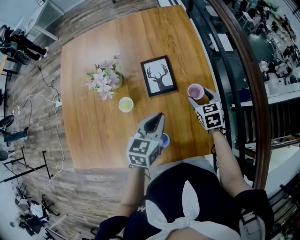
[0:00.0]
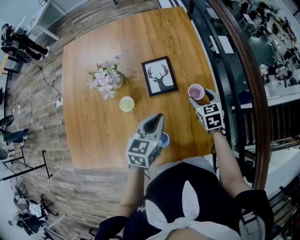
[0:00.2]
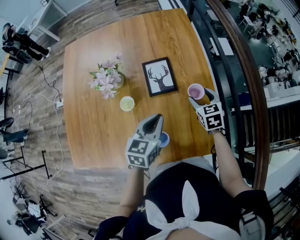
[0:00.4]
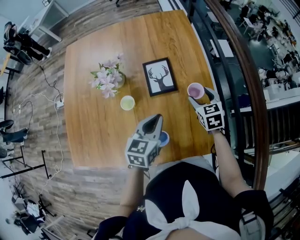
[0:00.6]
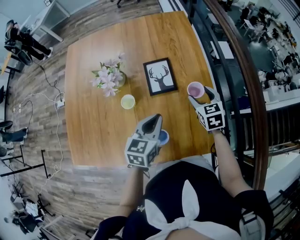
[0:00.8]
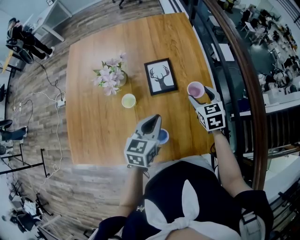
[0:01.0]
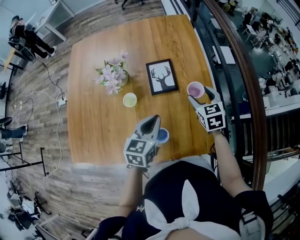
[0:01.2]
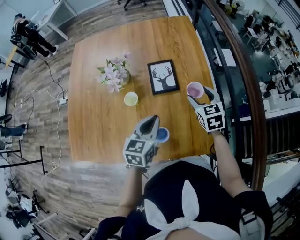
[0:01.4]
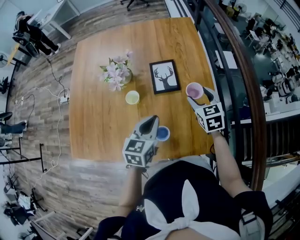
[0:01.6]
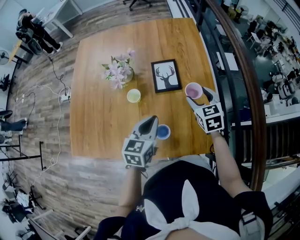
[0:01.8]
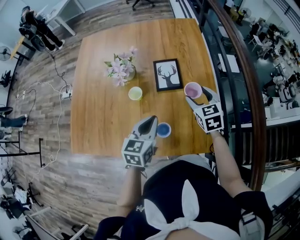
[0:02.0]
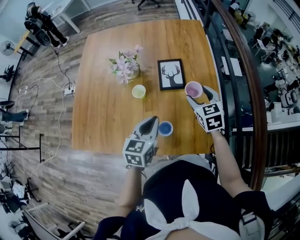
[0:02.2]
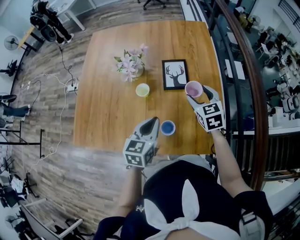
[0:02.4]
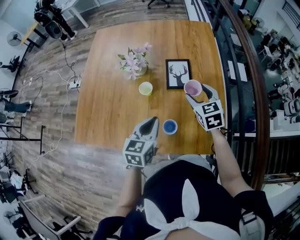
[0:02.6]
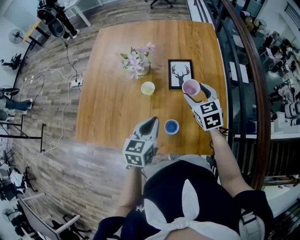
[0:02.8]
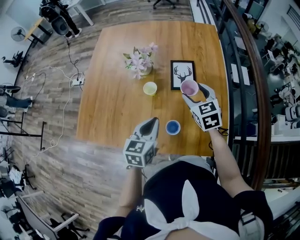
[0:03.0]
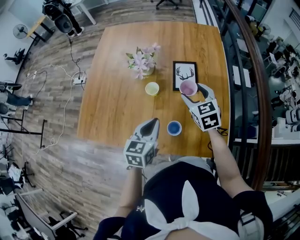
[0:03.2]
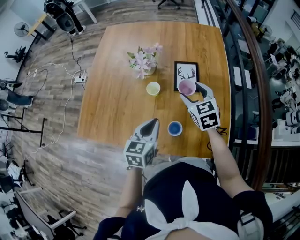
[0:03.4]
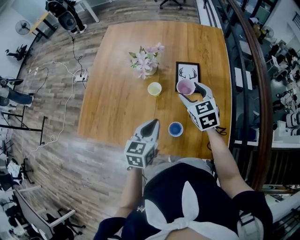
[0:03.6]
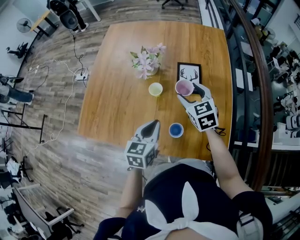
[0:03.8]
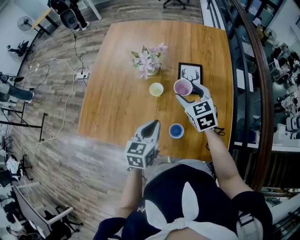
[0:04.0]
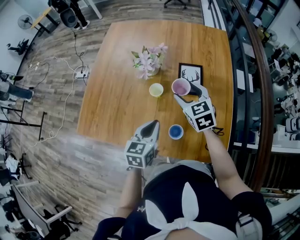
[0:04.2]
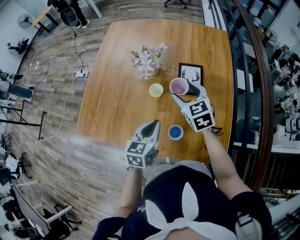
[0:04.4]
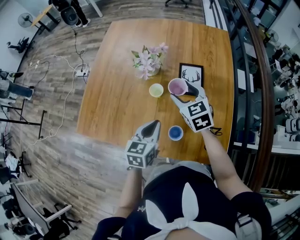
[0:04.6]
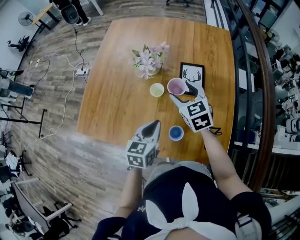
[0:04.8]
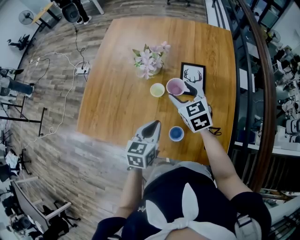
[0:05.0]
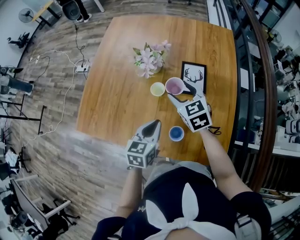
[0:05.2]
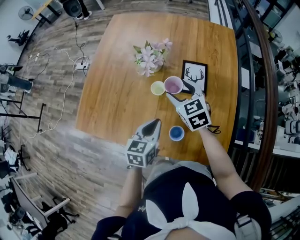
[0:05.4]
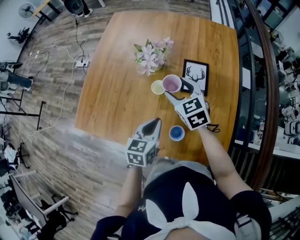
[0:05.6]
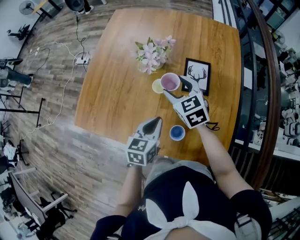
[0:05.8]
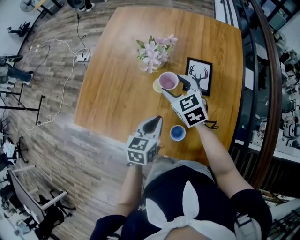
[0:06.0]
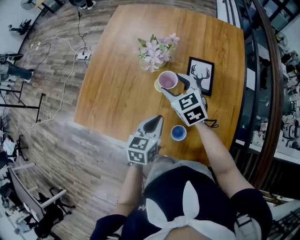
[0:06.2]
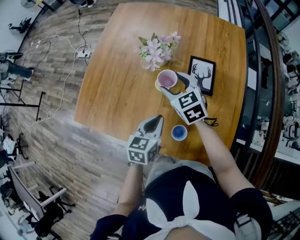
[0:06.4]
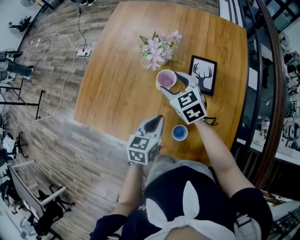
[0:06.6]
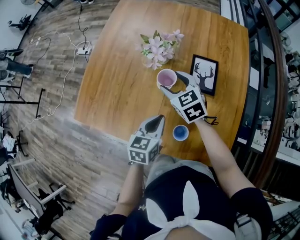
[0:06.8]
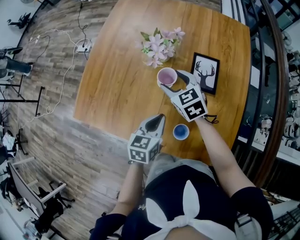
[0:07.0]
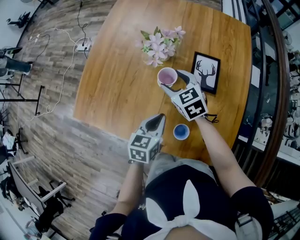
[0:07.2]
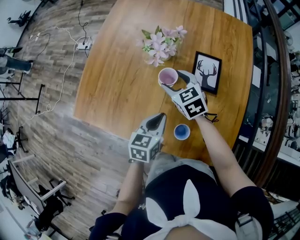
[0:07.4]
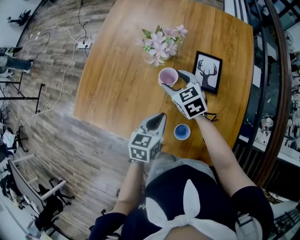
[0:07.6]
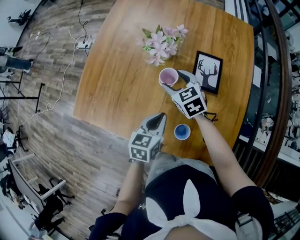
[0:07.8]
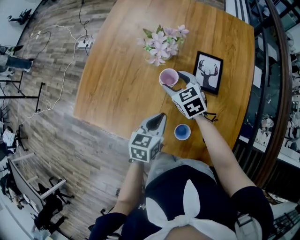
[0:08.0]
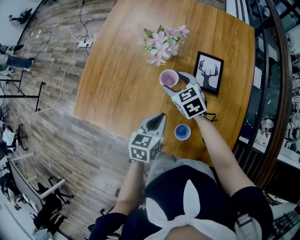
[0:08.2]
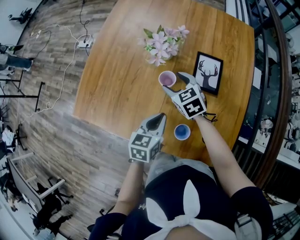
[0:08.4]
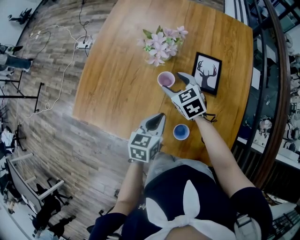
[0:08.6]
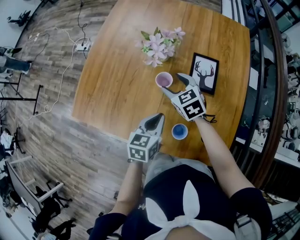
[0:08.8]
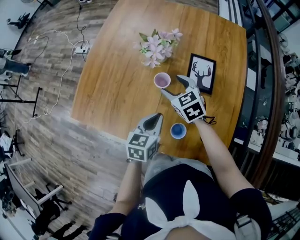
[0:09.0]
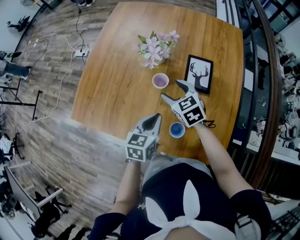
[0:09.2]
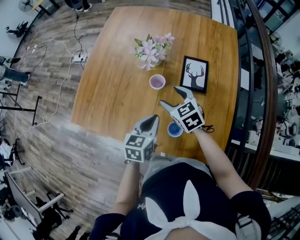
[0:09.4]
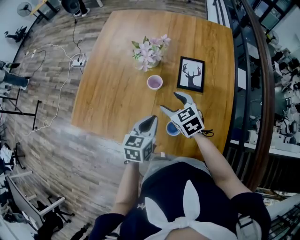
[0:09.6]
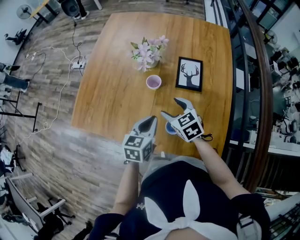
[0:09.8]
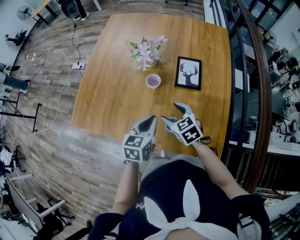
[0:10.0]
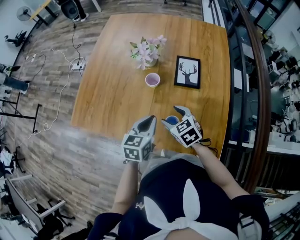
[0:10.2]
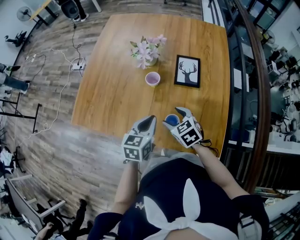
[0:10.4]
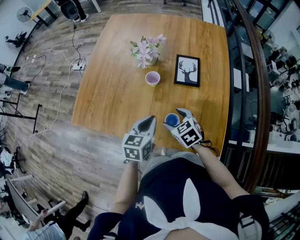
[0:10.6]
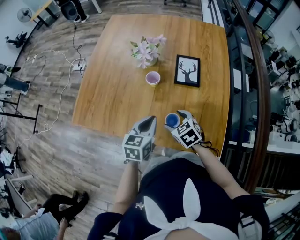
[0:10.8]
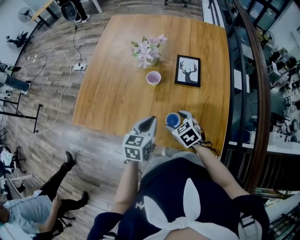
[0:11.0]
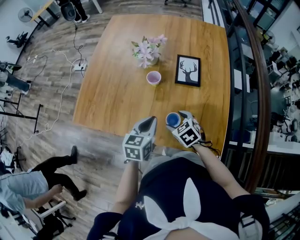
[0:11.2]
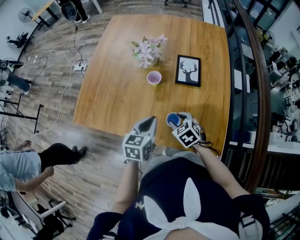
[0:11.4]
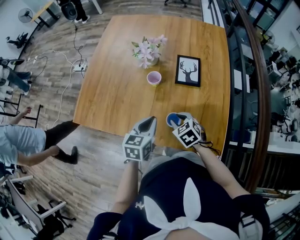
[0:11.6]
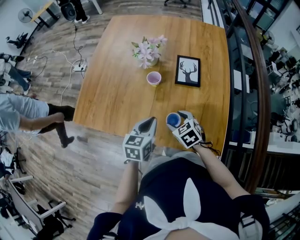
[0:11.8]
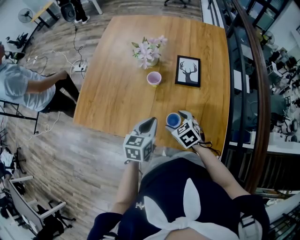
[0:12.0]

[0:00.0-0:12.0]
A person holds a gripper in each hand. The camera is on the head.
0.0 to 1.6 s: The left gripper travels backward by about 5 cm. The right gripper is displaced upward by roughly 10 cm.
1.6 to 3.0 s: The left gripper heads to the left and backward, covering roughly 10 cm; the right gripper is displaced to the left by approximately 10 cm.
3.0 to 4.4 s: The right gripper is displaced to the left by roughly 10 cm.
4.4 to 6.0 s: The right gripper heads to the left, covering some 5 cm.
6.0 to 7.6 s: The right gripper shifts some 10 cm downward.
7.6 to 9.0 s: The grippers make only small movements.
9.0 to 10.4 s: The left gripper moves backward, some 5 cm; the right gripper heads backward, covering some 20 cm.
10.4 to 12.0 s: The right gripper closes, then opens again.

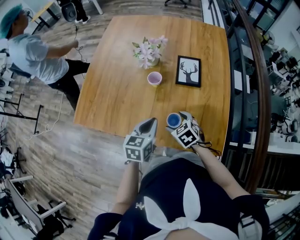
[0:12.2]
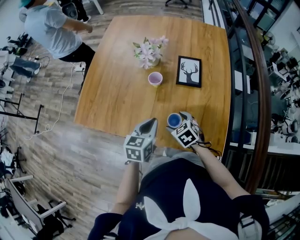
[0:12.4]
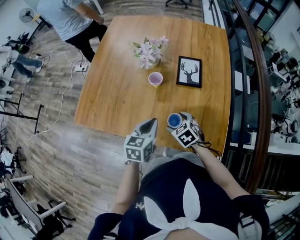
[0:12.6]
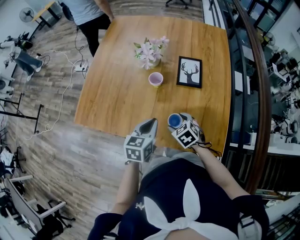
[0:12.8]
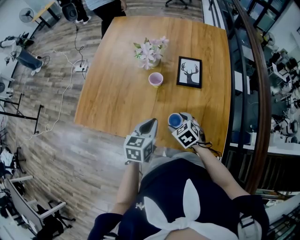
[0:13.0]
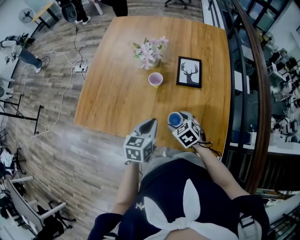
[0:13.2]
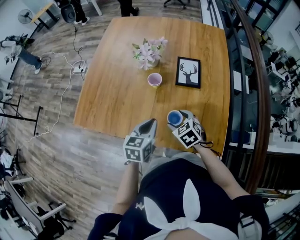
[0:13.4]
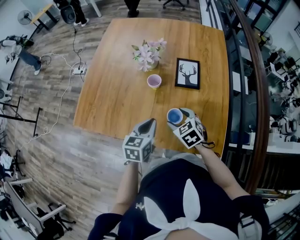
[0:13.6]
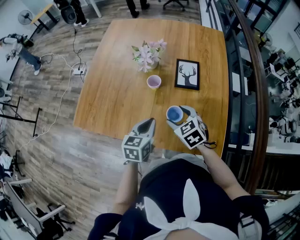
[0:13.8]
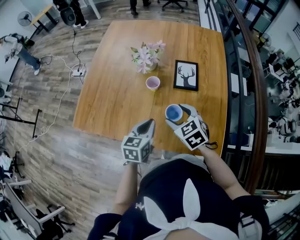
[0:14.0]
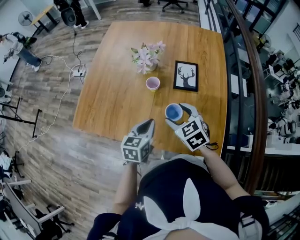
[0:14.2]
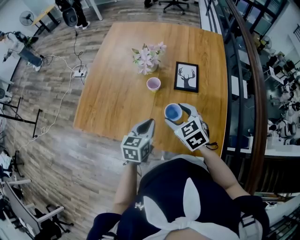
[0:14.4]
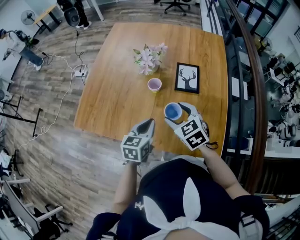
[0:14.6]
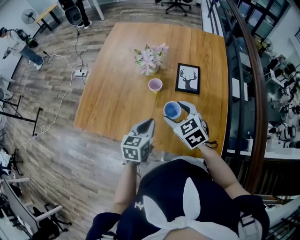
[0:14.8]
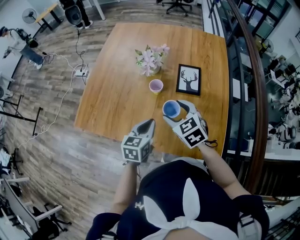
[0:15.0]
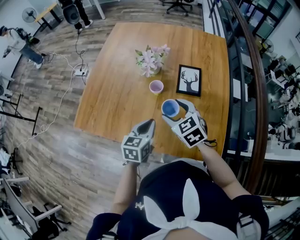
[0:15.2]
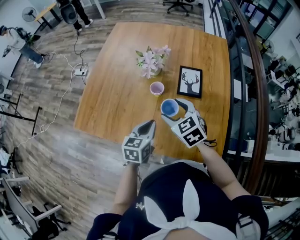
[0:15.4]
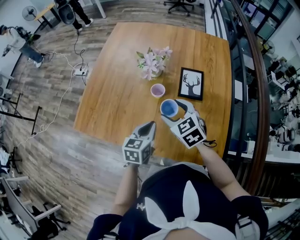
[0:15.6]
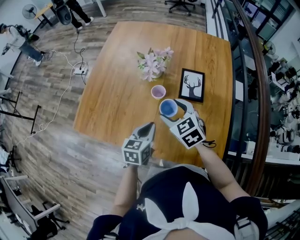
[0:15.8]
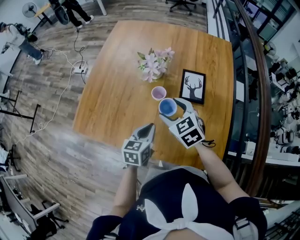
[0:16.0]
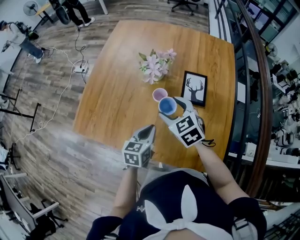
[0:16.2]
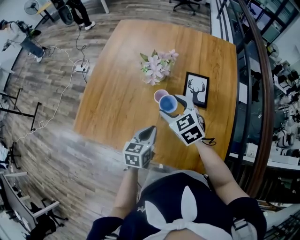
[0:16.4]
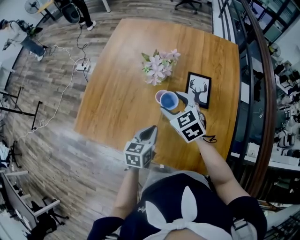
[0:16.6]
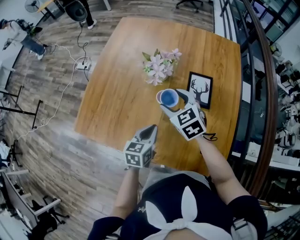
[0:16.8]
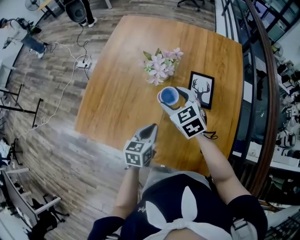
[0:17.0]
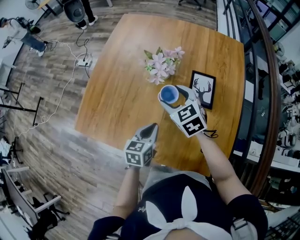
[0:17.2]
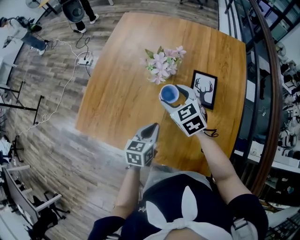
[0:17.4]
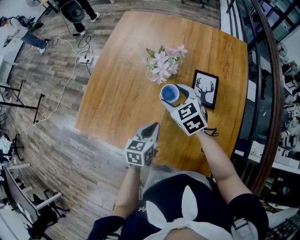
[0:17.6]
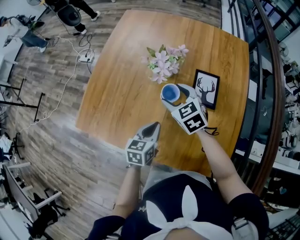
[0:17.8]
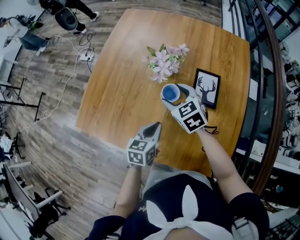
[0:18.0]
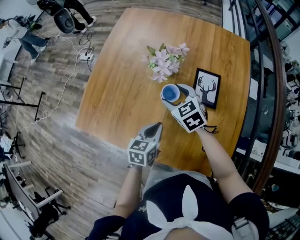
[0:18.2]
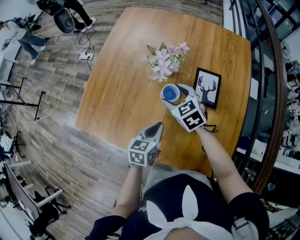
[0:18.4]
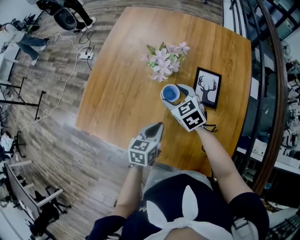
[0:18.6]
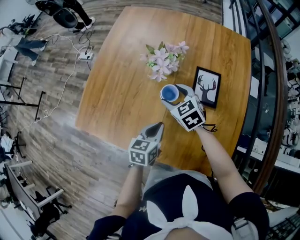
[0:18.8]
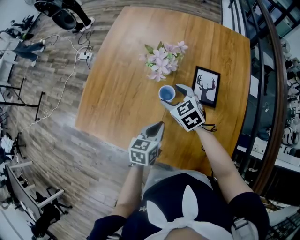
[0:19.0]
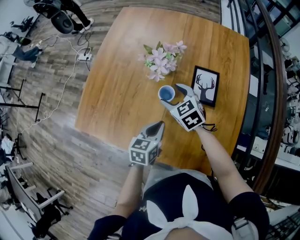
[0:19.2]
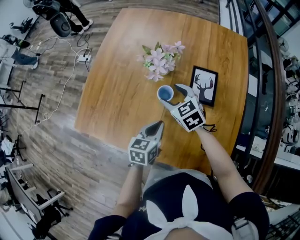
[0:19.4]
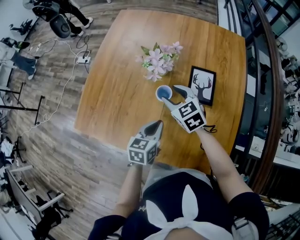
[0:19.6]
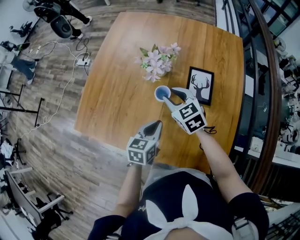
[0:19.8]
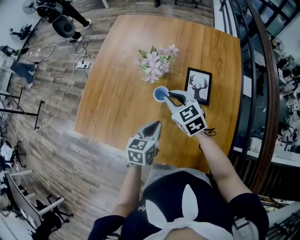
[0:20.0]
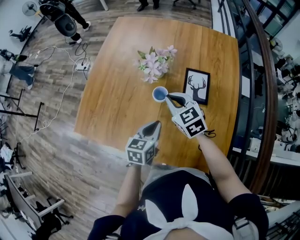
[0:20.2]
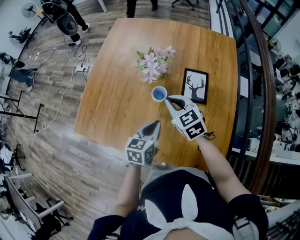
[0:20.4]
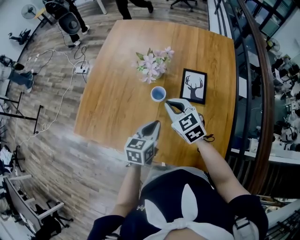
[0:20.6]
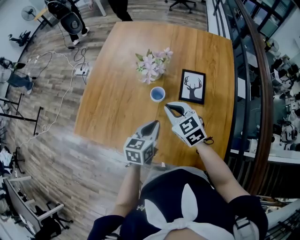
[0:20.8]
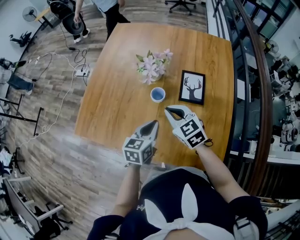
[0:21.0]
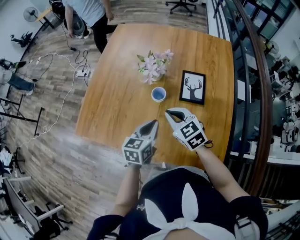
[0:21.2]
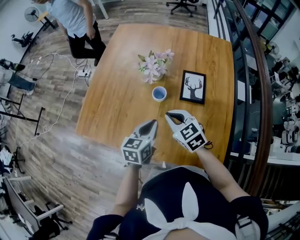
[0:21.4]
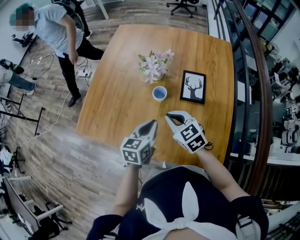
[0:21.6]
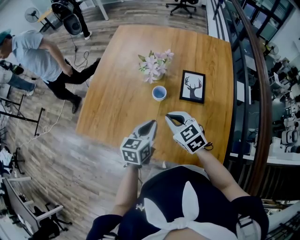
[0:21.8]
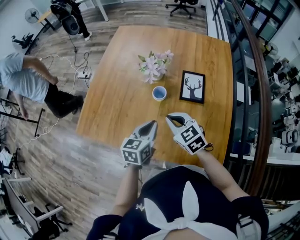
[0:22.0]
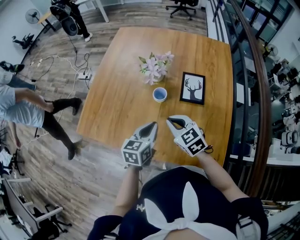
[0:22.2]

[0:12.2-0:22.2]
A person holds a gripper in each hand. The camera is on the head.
12.2 to 13.6 s: The right gripper changes place by roughly 5 cm.
13.6 to 15.0 s: The right gripper moves upward, some 10 cm.
15.0 to 16.4 s: The left gripper is displaced forward by approximately 5 cm. The right gripper heads forward, covering approximately 10 cm.
16.4 to 18.0 s: The right gripper is displaced forward by about 5 cm.
18.0 to 19.4 s: The grippers stay close to where they were, moving slightly.
19.4 to 20.8 s: The left gripper shifts by some 5 cm. Meanwhile the right gripper is displaced backward and upward by some 10 cm, and closes.
20.8 to 22.2 s: The right gripper travels backward by about 5 cm.

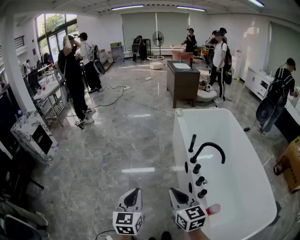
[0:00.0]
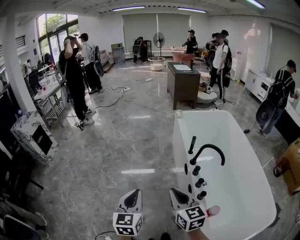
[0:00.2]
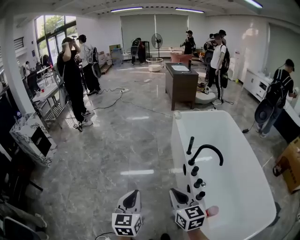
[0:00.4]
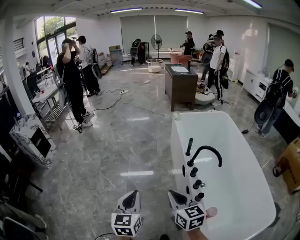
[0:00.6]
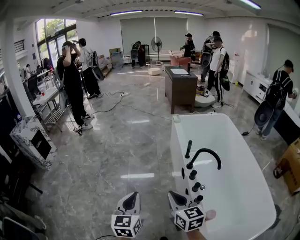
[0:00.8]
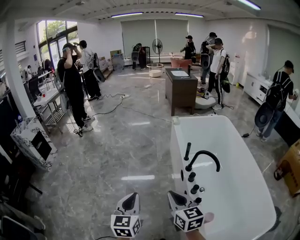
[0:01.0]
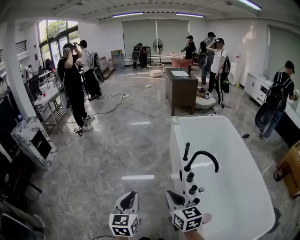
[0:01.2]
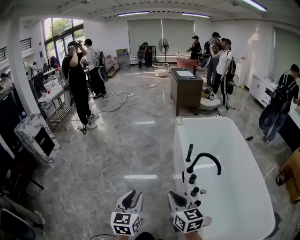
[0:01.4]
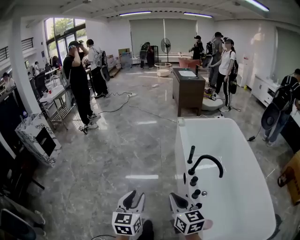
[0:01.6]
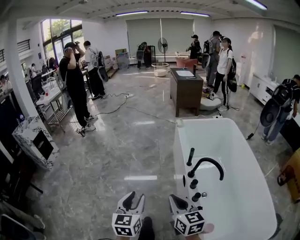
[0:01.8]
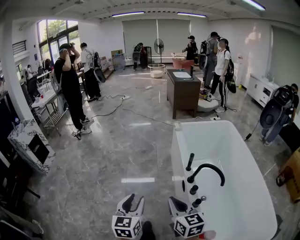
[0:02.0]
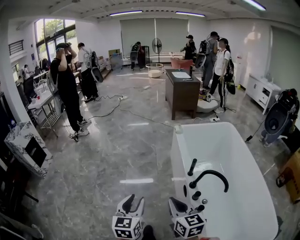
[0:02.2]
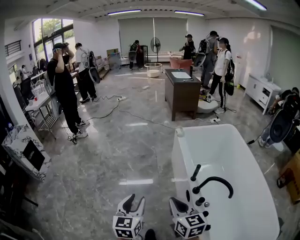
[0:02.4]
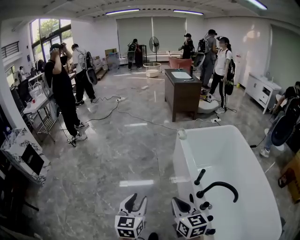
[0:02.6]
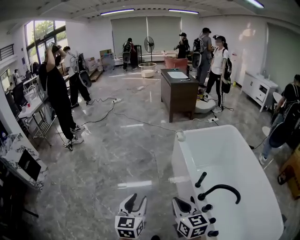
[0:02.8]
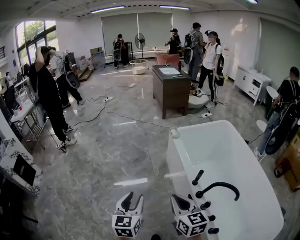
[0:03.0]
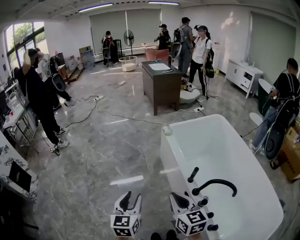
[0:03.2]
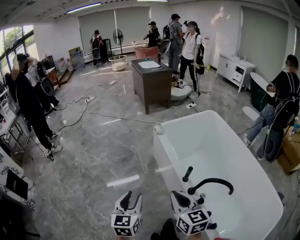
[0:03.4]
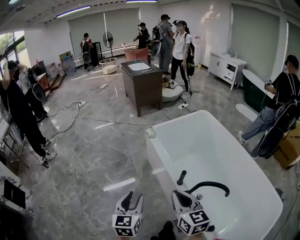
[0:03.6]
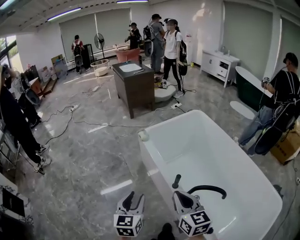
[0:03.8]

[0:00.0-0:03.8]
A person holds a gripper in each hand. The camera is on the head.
0.0 to 1.2 s: The two grippers go roughly 5 cm to the right.
1.2 to 2.6 s: The two grippers go some 40 cm forward. The left gripper opens.
2.6 to 3.8 s: The grippers both shift forward and to the right by about 30 cm. The right gripper turns by roughly 20 degrees, while the left gripper turns by some 20 degrees.
